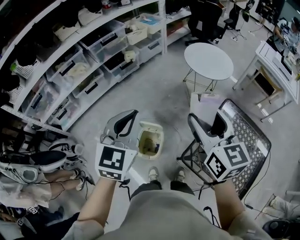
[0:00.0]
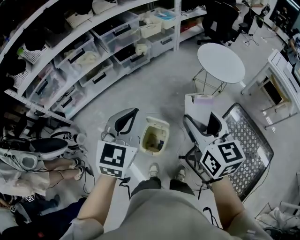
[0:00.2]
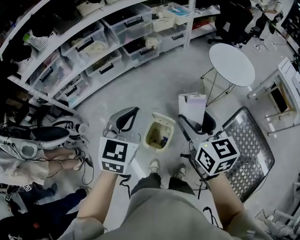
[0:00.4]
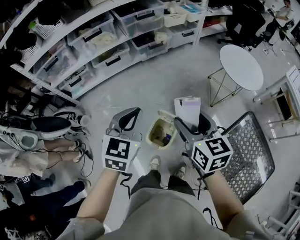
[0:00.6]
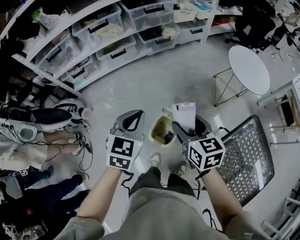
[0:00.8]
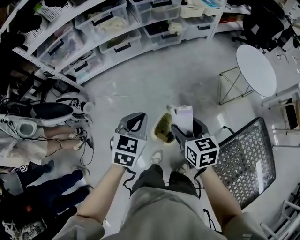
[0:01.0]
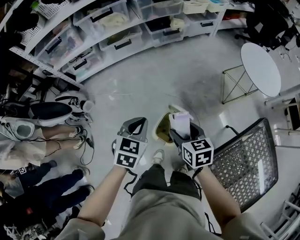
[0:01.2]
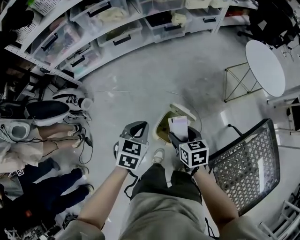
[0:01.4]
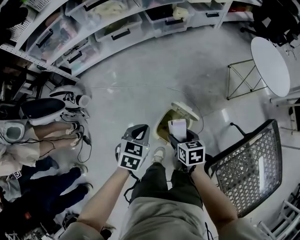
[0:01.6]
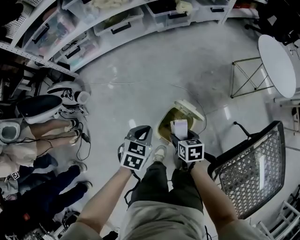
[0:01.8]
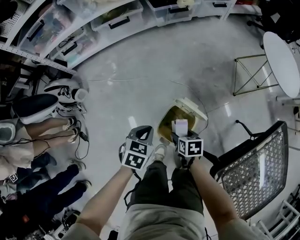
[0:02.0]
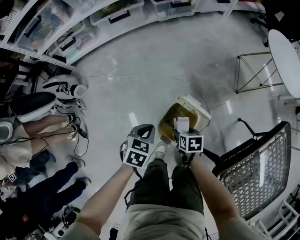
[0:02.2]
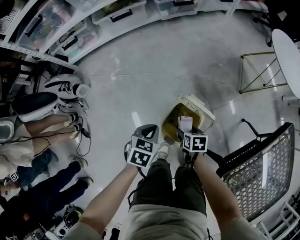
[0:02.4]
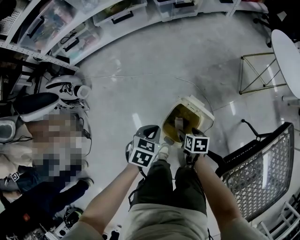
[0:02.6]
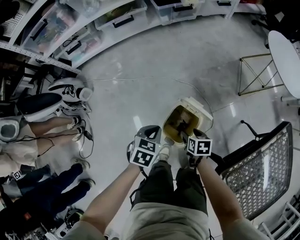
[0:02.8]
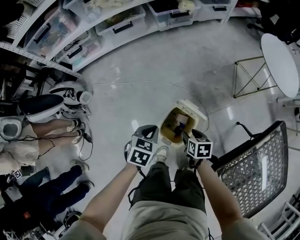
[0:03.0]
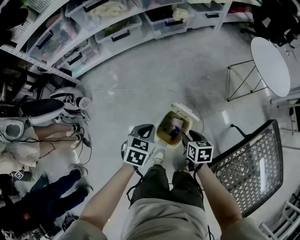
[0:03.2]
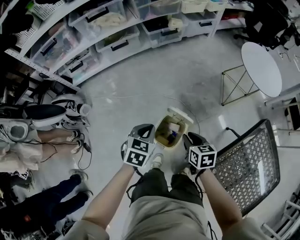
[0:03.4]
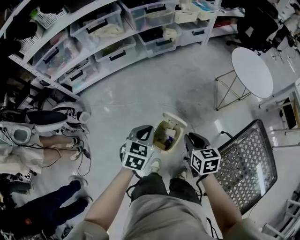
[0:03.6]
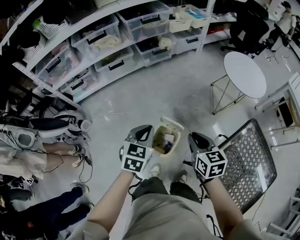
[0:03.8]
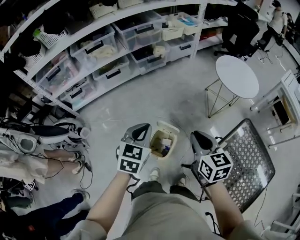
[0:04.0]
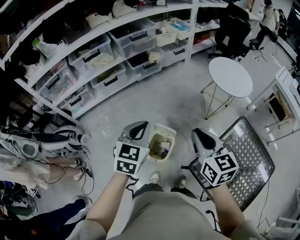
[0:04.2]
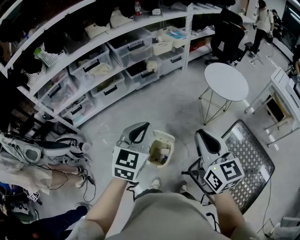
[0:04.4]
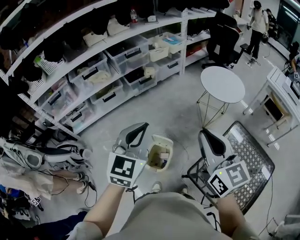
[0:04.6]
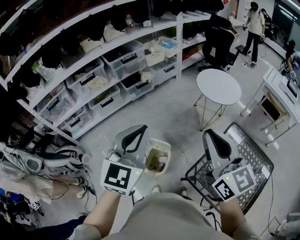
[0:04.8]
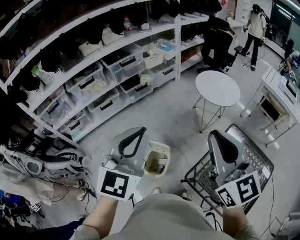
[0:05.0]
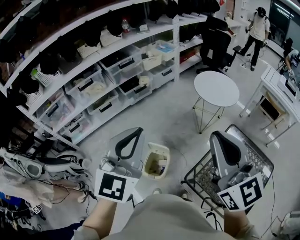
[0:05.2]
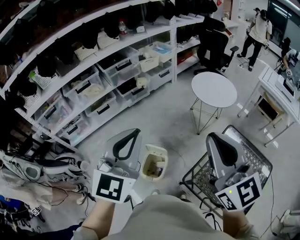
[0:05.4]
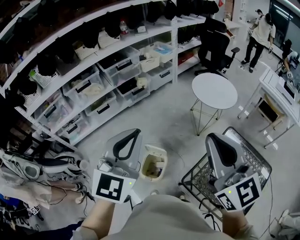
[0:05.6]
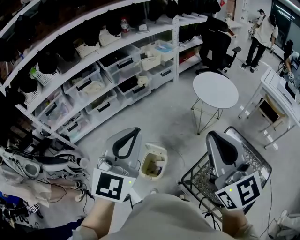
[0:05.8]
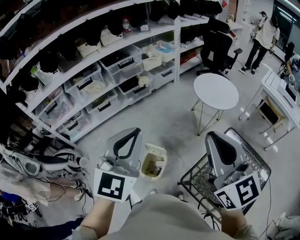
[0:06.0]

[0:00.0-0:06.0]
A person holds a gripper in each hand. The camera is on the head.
0:00.0 to 0:01.6: Both grippers move downward and to the left, roughly 50 cm. The right gripper angles its fingers downward, by approximately 40 degrees. The left gripper tips its fingers downward by roughly 30 degrees.
0:01.6 to 0:03.0: The grippers both shift downward by about 10 cm.
0:03.0 to 0:04.4: The grippers both shift upward by approximately 50 cm. The left gripper tilts its fingers approximately 40 degrees upward. The right gripper tilts its fingers some 50 degrees upward, and closes up.
0:04.4 to 0:06.0: The grippers both shift upward and to the right by about 15 cm.

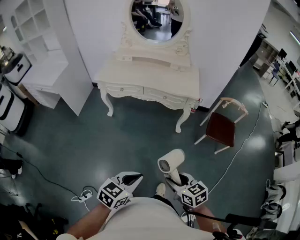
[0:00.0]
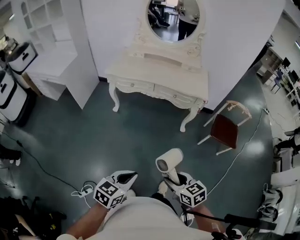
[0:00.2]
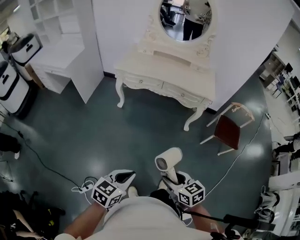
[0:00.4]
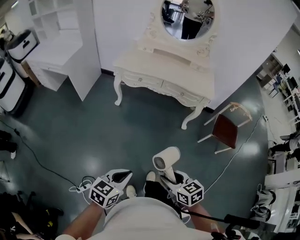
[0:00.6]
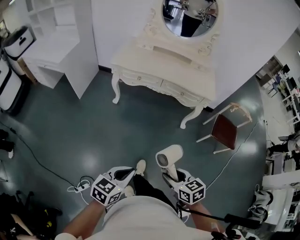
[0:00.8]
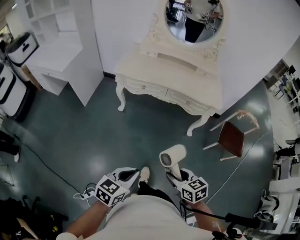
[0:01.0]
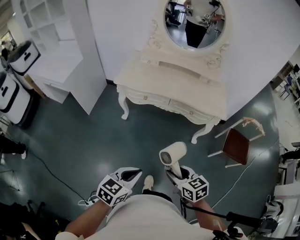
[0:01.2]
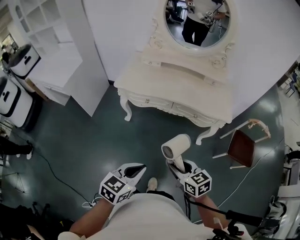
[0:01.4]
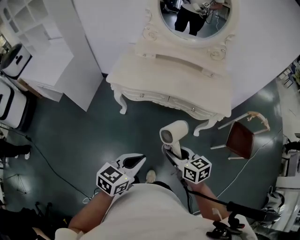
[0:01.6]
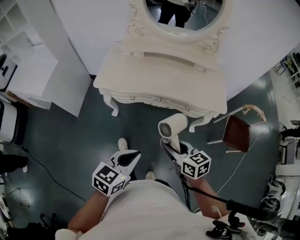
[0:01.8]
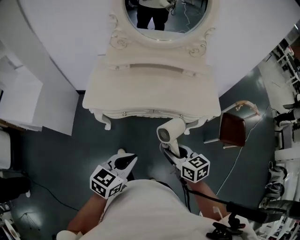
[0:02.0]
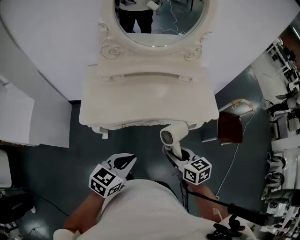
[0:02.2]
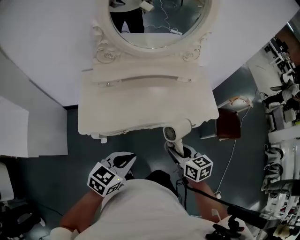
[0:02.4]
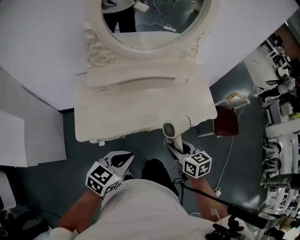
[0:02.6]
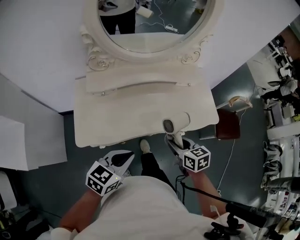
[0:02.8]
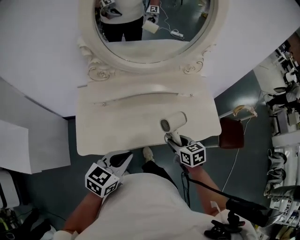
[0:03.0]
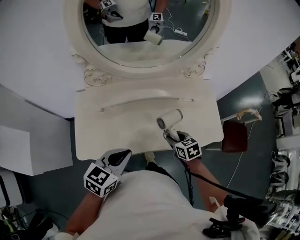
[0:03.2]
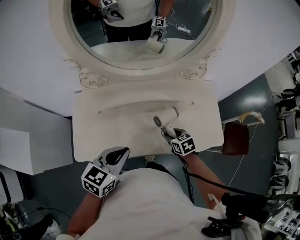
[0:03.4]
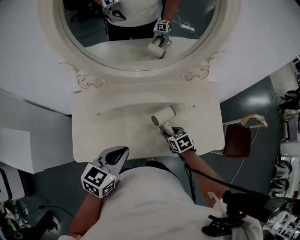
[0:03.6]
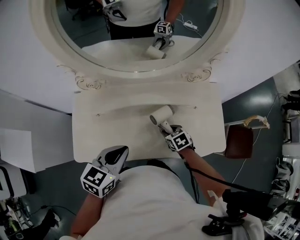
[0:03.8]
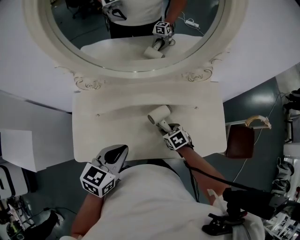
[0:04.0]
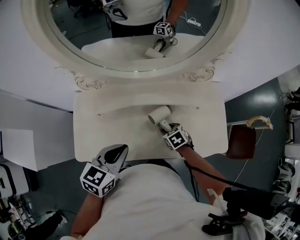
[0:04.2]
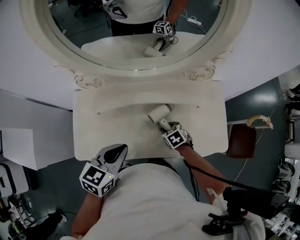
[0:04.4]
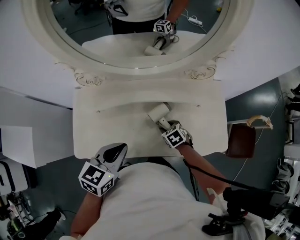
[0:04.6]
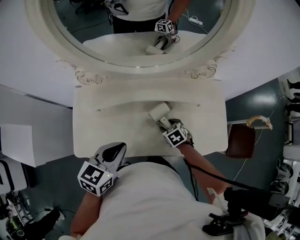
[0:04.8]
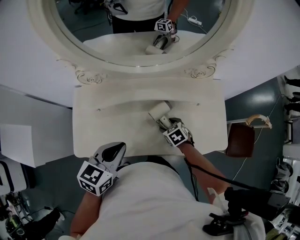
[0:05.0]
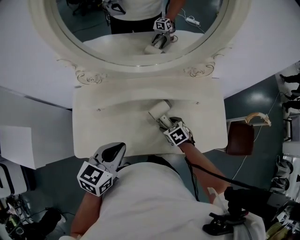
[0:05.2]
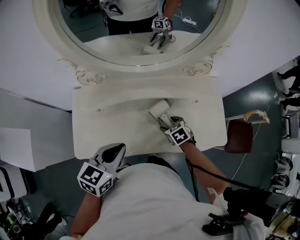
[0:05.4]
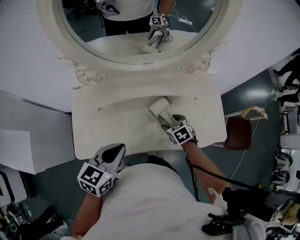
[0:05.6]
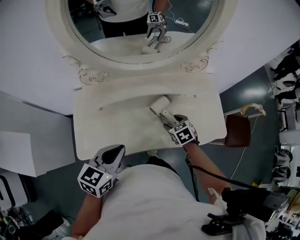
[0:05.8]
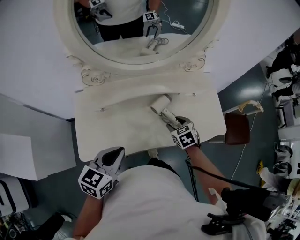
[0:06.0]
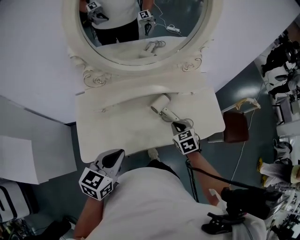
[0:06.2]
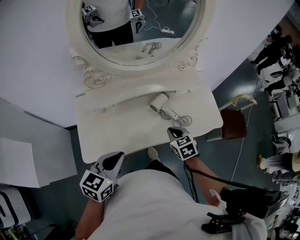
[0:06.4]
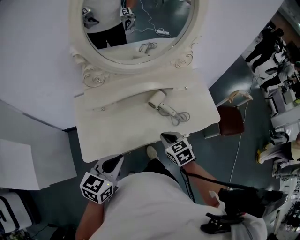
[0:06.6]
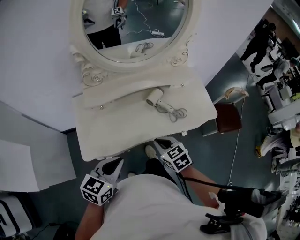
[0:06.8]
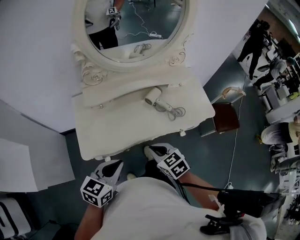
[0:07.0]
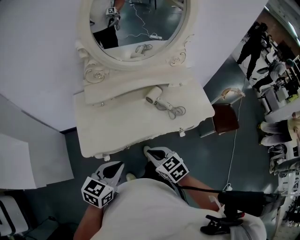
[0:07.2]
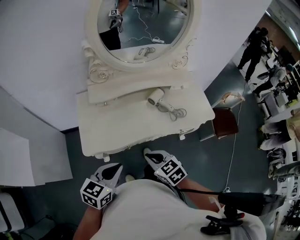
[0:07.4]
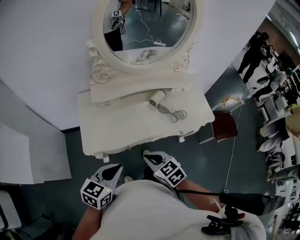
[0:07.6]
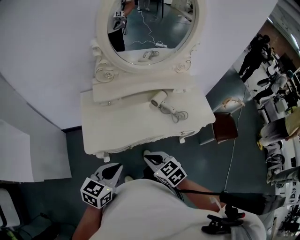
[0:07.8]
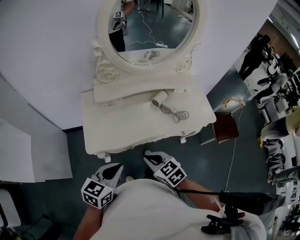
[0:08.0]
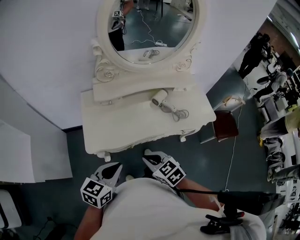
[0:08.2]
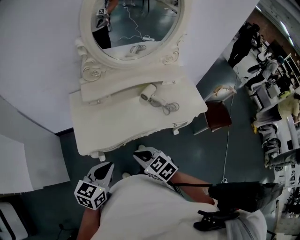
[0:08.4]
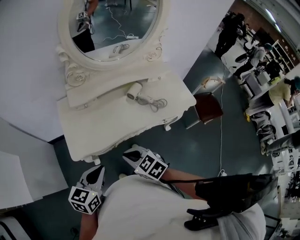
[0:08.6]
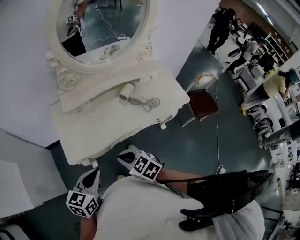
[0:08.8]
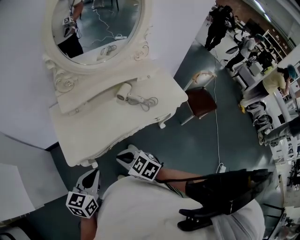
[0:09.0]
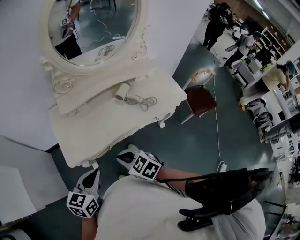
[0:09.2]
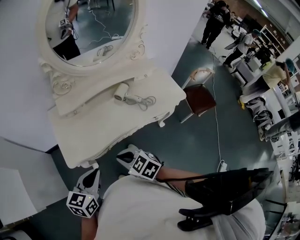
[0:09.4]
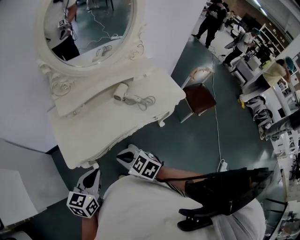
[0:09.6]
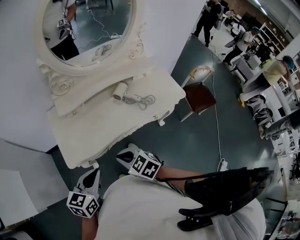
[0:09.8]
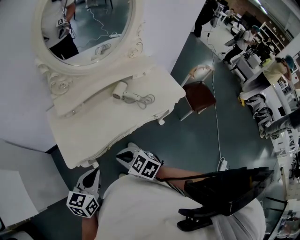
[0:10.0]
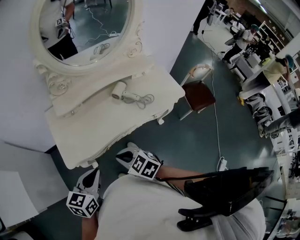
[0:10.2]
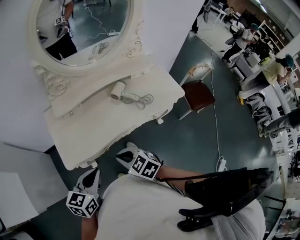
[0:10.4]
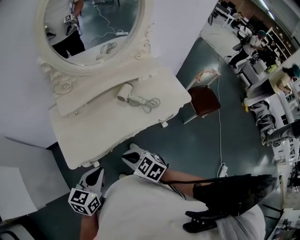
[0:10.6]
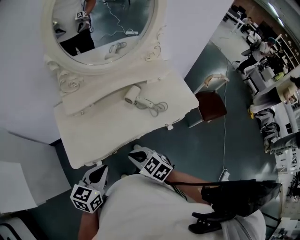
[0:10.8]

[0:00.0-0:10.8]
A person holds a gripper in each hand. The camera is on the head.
0:00.0 to 0:01.6: The grippers both shift forward and to the left by roughly 40 cm.
0:01.6 to 0:03.0: The pair of grippers is taken roughly 40 cm. The right gripper rotates roughly 30 degrees; the left gripper swivels roughly 20 degrees.
0:03.0 to 0:04.6: The right gripper heads forward and downward, covering some 20 cm, and swivels some 30 degrees. The left gripper moves forward and to the right, about 15 cm.
0:04.6 to 0:06.2: The left gripper travels backward and to the left by some 15 cm. The right gripper heads upward and backward, covering approximately 15 cm, swivels about 20 degrees, and closes.
0:06.2 to 0:07.8: The left gripper travels backward by some 20 cm, while the right gripper heads backward and to the left, covering about 35 cm, and rotates approximately 20 degrees.
0:07.8 to 0:09.2: The grippers make only small movements.
0:09.2 to 0:10.8: The right gripper goes approximately 5 cm to the right. Meanwhile the left gripper shifts roughly 5 cm forward.

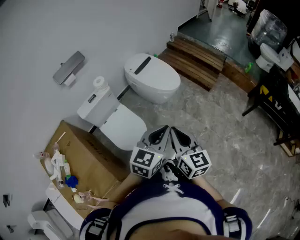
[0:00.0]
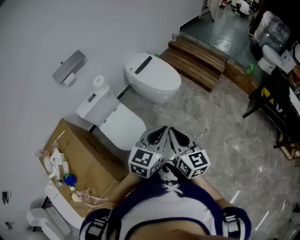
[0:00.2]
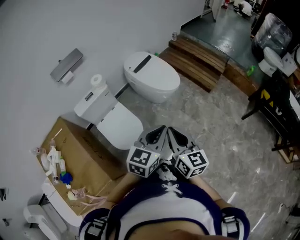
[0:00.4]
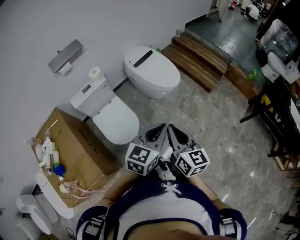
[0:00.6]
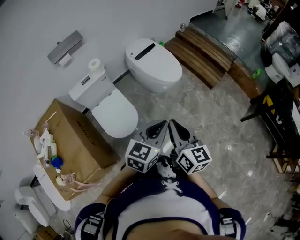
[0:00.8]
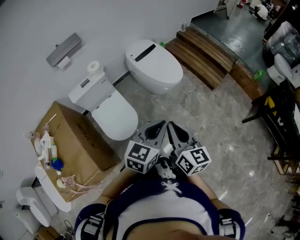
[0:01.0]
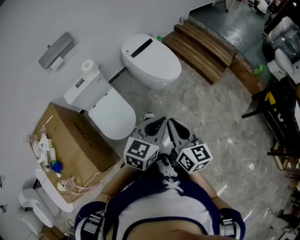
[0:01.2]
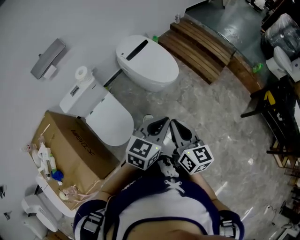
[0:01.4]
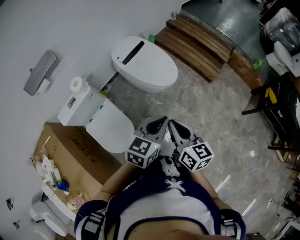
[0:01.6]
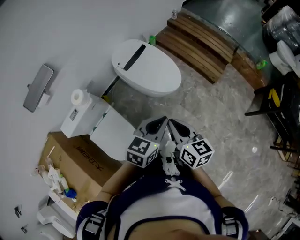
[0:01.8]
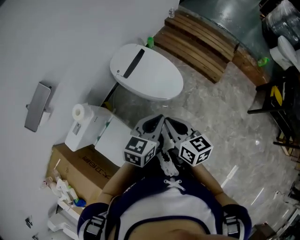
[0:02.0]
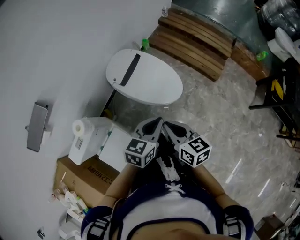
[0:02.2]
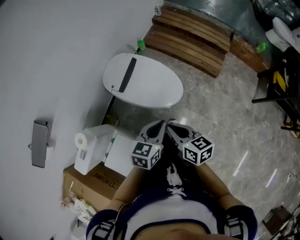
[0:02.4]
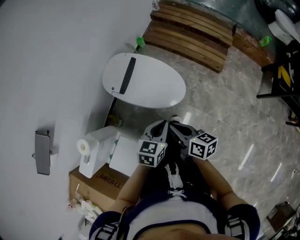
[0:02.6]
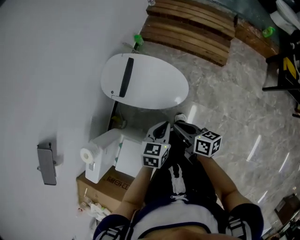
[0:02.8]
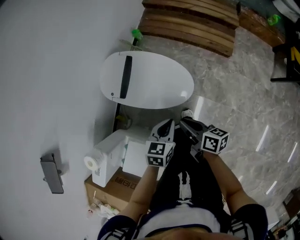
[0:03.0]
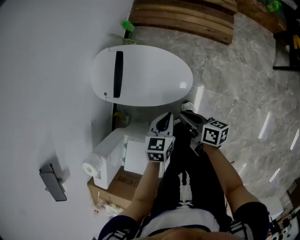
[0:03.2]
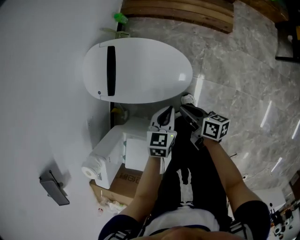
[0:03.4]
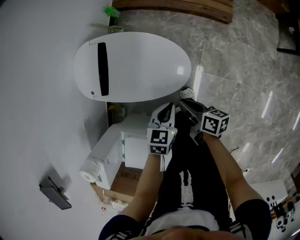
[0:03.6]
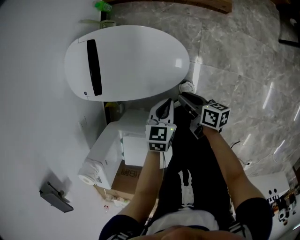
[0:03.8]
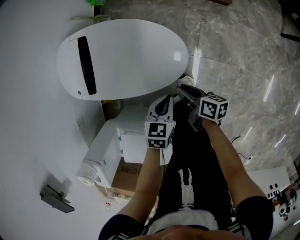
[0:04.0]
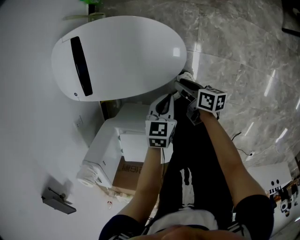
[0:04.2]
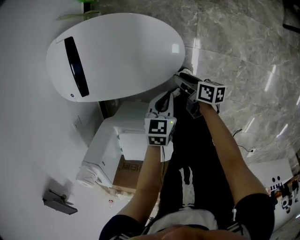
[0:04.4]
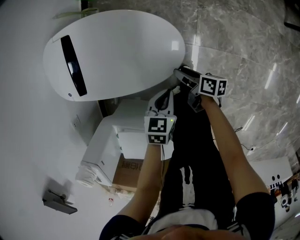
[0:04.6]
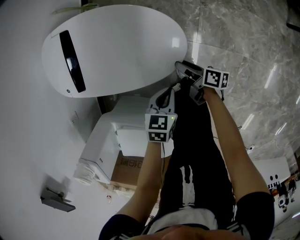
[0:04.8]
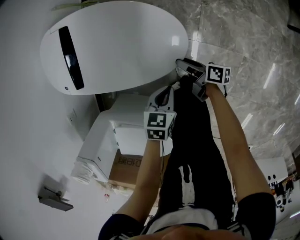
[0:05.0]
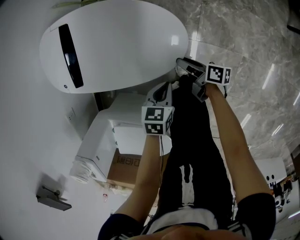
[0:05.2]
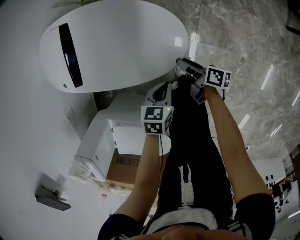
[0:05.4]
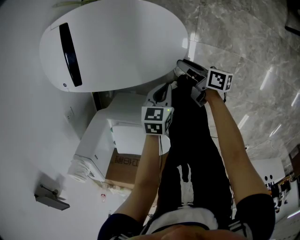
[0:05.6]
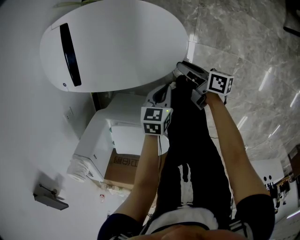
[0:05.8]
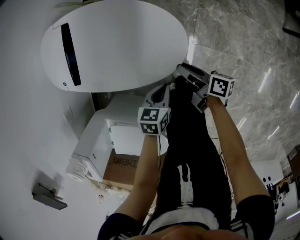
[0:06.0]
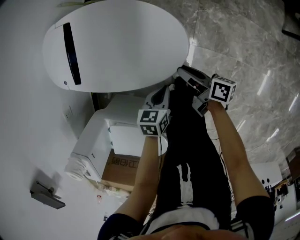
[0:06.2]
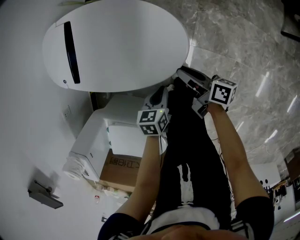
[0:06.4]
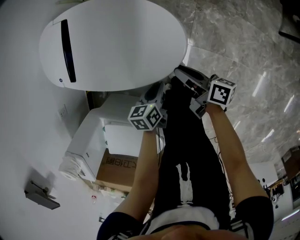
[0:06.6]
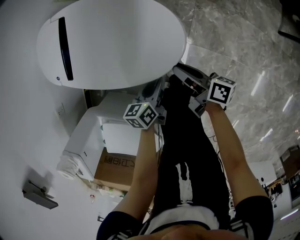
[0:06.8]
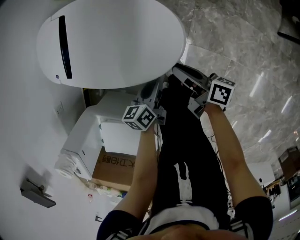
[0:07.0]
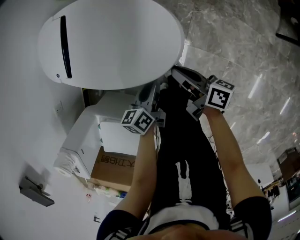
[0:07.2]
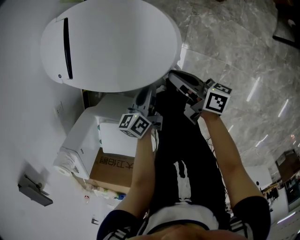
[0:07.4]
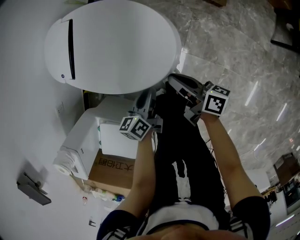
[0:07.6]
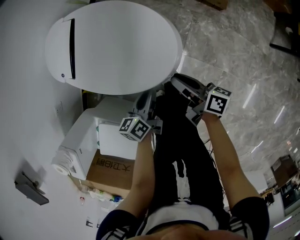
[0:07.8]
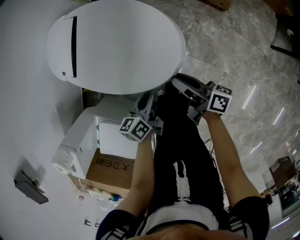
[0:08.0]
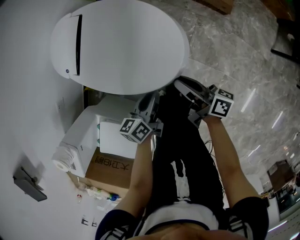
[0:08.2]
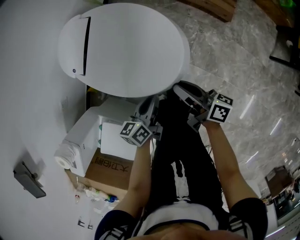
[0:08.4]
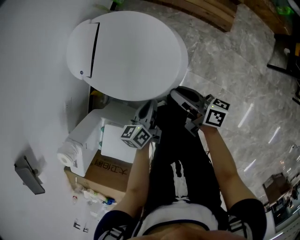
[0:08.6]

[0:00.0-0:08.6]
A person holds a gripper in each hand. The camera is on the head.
0:00.0 to 0:01.4: The two grippers go approximately 15 cm forward and to the right.
0:01.4 to 0:02.8: Both grippers move forward and downward, some 40 cm. The right gripper turns by some 40 degrees. The left gripper changes its angle by some 30 degrees.
0:02.8 to 0:04.4: Both grippers travel together downward, approximately 35 cm. The right gripper rotates about 30 degrees, and opens its fingers.
0:04.4 to 0:05.8: The grippers move only a little.
0:05.8 to 0:07.2: The right gripper heads upward, covering approximately 10 cm, and closes; the left gripper moves some 5 cm, swivels about 40 degrees, and opens up.
0:07.2 to 0:08.6: Both grippers move upward, some 15 cm. The left gripper closes up.
